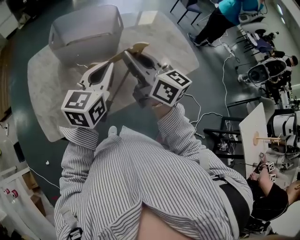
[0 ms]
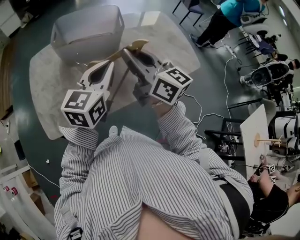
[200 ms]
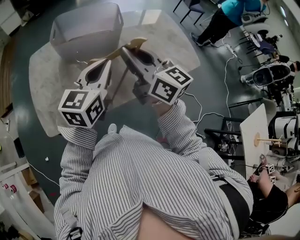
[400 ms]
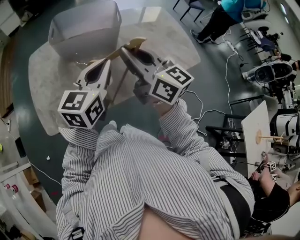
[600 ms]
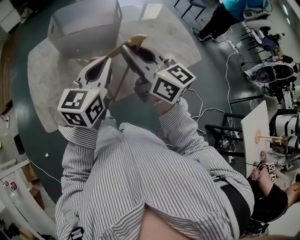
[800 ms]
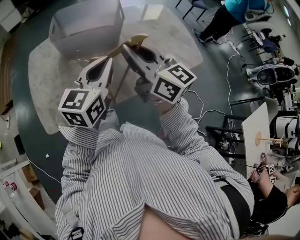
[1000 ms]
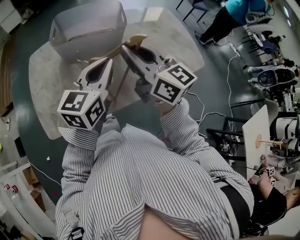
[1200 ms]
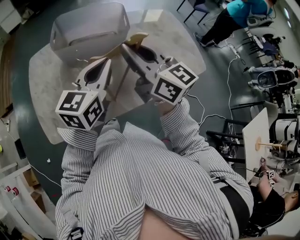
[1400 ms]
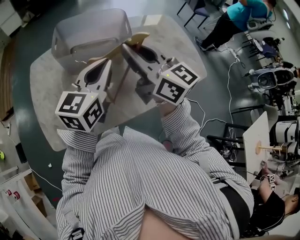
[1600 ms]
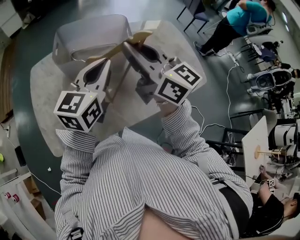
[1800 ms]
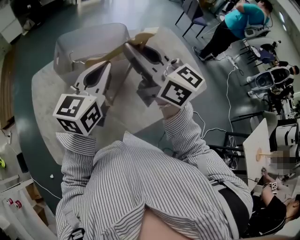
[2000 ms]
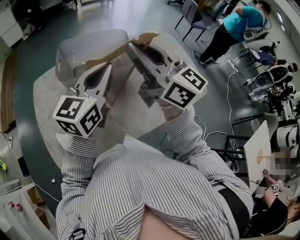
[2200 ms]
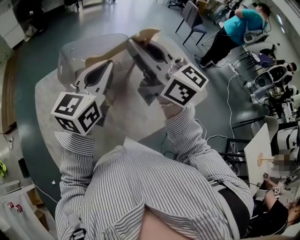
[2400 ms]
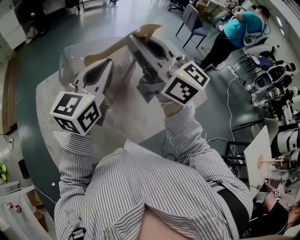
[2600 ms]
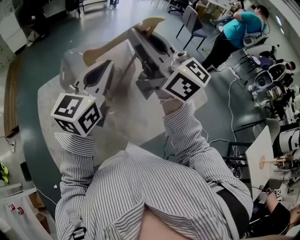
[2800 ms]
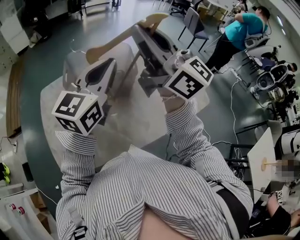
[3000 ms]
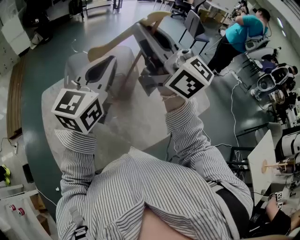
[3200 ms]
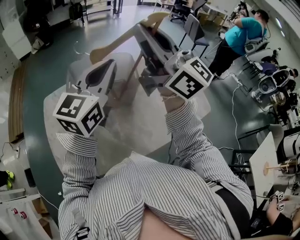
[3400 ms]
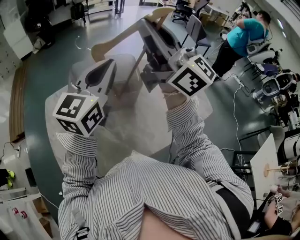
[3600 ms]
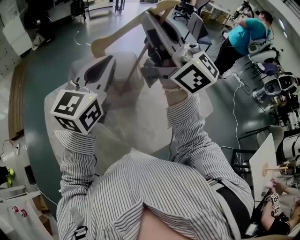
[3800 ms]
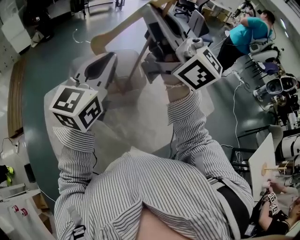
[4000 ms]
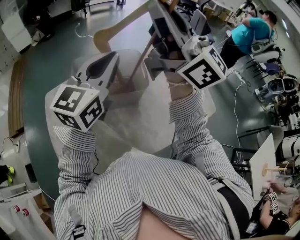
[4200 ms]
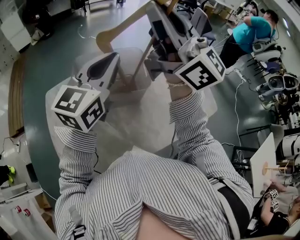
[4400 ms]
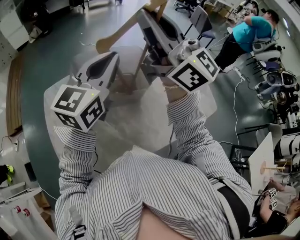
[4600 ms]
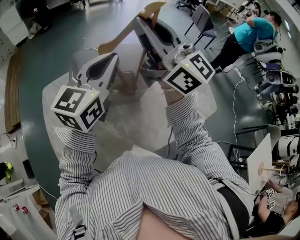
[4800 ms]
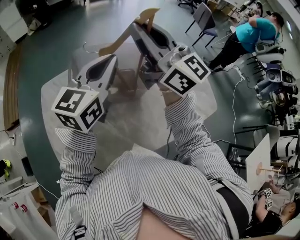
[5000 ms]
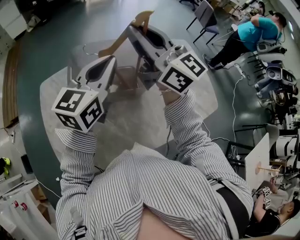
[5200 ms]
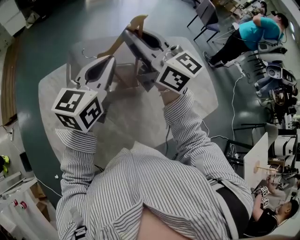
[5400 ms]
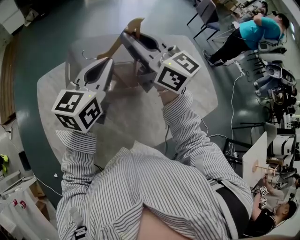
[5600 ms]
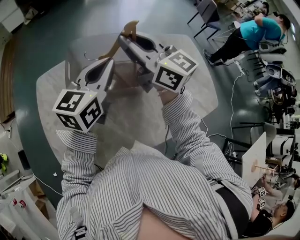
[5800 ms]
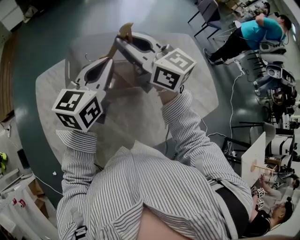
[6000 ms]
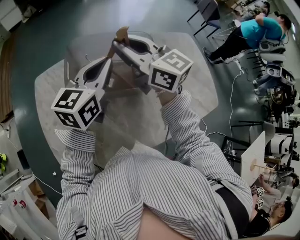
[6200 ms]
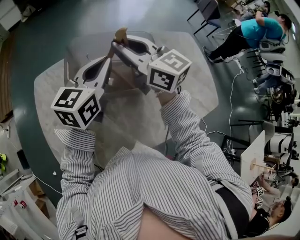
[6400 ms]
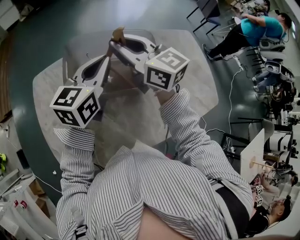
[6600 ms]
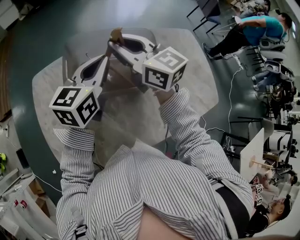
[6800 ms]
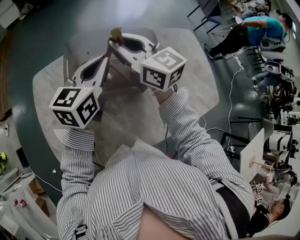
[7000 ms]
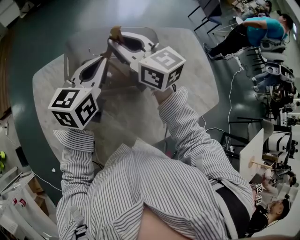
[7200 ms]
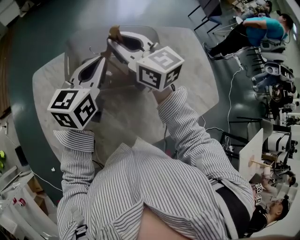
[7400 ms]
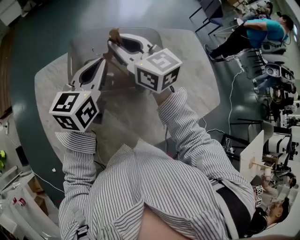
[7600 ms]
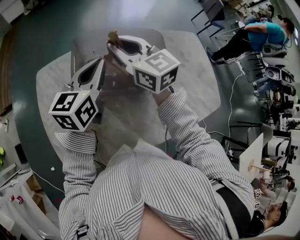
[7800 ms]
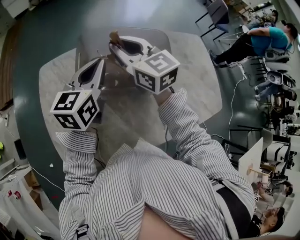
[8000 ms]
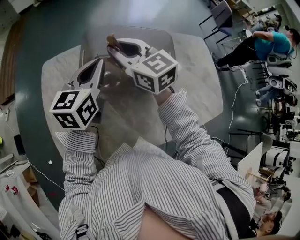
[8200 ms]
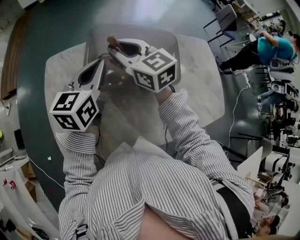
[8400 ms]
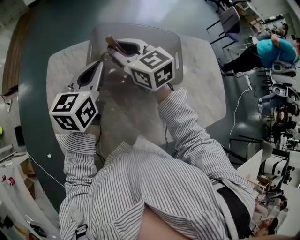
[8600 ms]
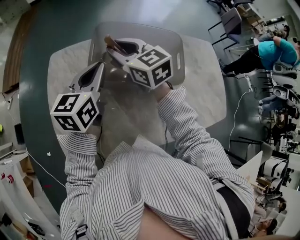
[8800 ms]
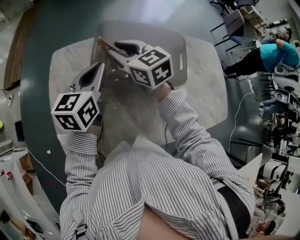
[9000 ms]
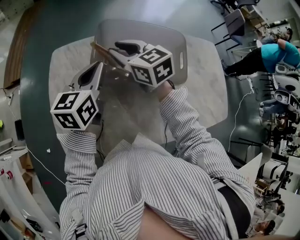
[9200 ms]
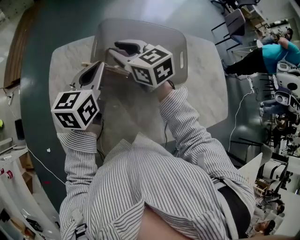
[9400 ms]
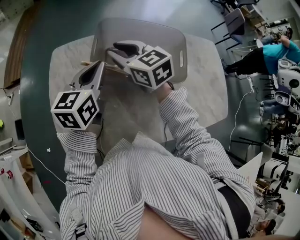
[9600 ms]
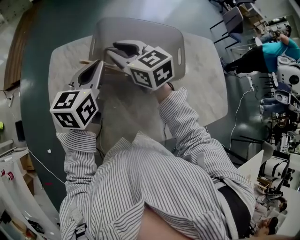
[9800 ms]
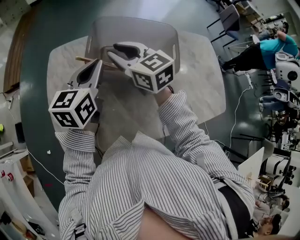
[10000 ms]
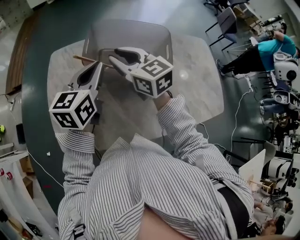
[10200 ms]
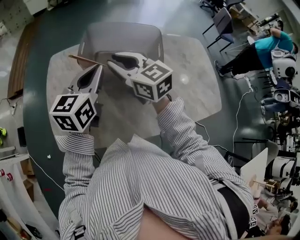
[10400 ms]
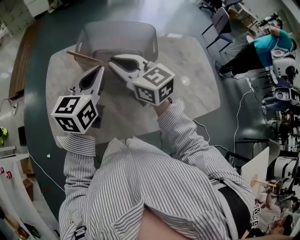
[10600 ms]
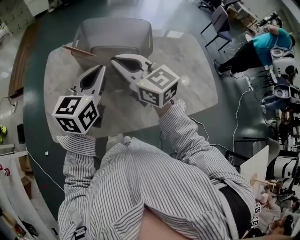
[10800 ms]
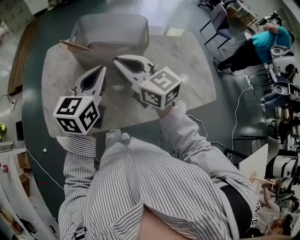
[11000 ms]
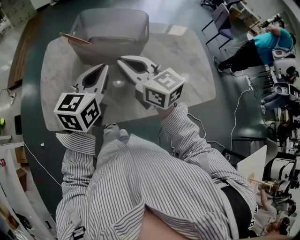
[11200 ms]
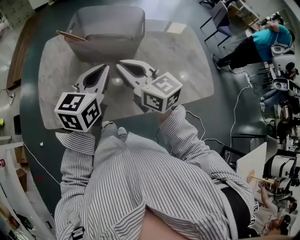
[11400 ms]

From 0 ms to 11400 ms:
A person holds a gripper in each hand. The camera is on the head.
From 0 ms to 1400 ms: The grippers stay close to where they were, moving slightly.
From 1400 ms to 2800 ms: Both grippers travel together upward and forward, about 15 cm.
From 2800 ms to 4200 ms: The left gripper goes about 10 cm forward. Meanwhile the right gripper goes approximately 10 cm upward and forward.
From 4200 ms to 5600 ms: The right gripper is displaced downward and forward by about 25 cm, and swivels some 30 degrees; the left gripper shifts some 15 cm downward and forward.
From 5600 ms to 7200 ms: The left gripper moves approximately 5 cm, while the right gripper moves downward, about 10 cm.
From 7200 ms to 8600 ms: The two grippers go roughly 10 cm to the left.
From 8600 ms to 10000 ms: The right gripper shifts some 5 cm backward.
From 10000 ms to 11400 ms: Both grippers move backward and to the right, approximately 25 cm. The right gripper closes up.

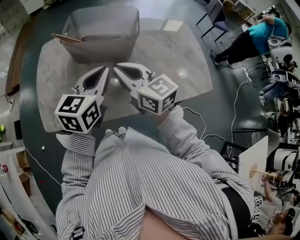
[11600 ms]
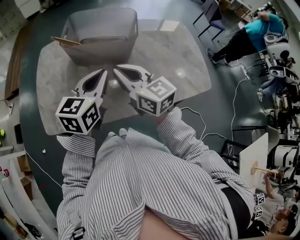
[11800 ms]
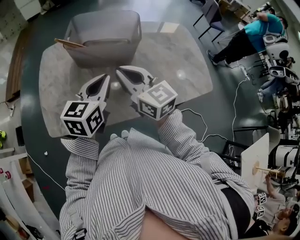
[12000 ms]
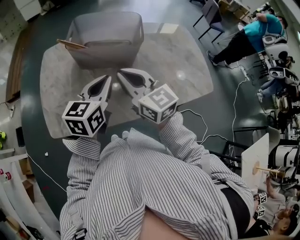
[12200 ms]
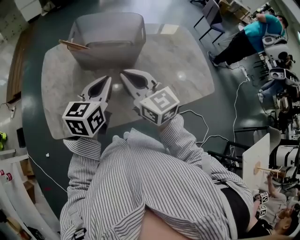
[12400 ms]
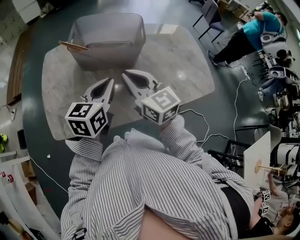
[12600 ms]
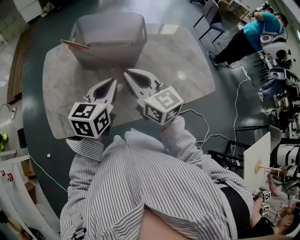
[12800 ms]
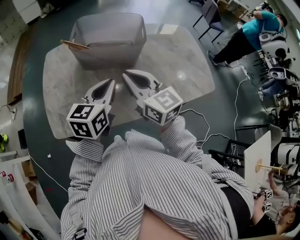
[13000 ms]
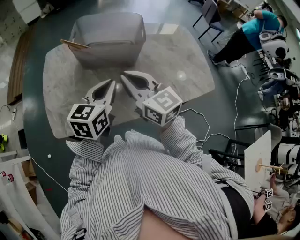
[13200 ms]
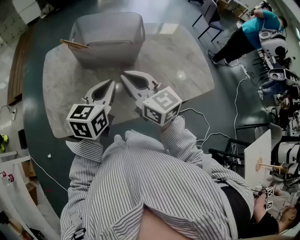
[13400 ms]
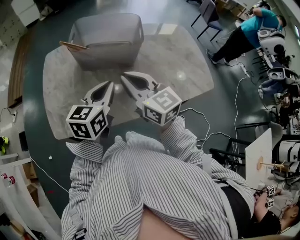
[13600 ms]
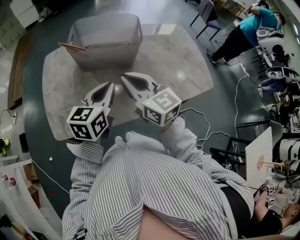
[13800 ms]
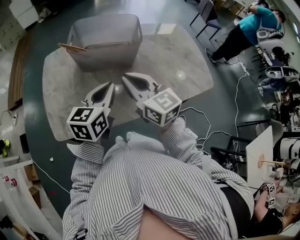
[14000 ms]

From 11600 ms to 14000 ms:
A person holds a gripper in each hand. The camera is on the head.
From 11600 ms to 14000 ms: There are only small adjustments of the grippers.

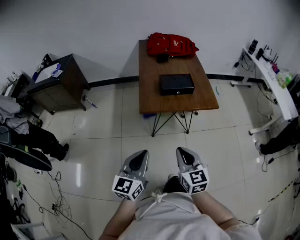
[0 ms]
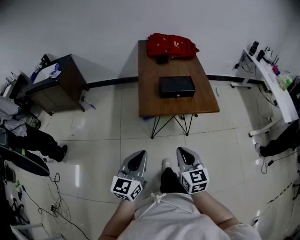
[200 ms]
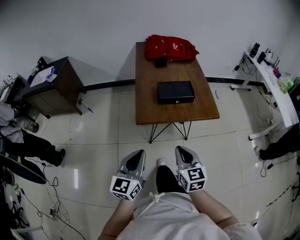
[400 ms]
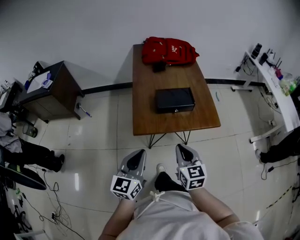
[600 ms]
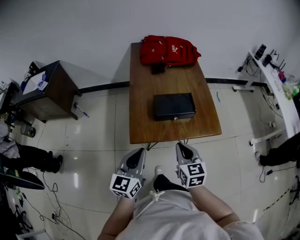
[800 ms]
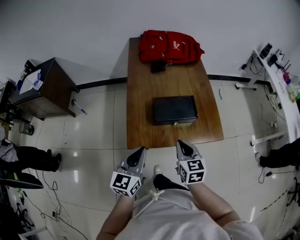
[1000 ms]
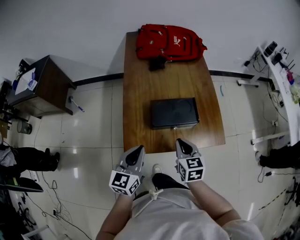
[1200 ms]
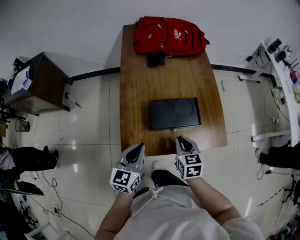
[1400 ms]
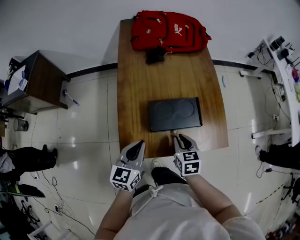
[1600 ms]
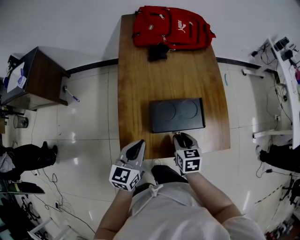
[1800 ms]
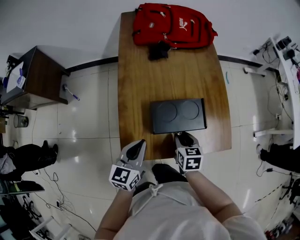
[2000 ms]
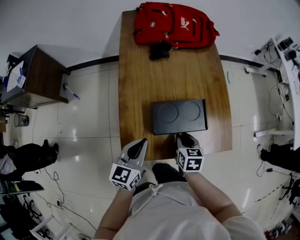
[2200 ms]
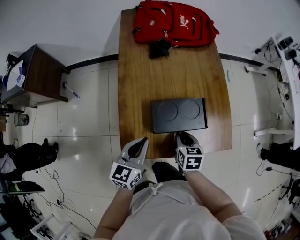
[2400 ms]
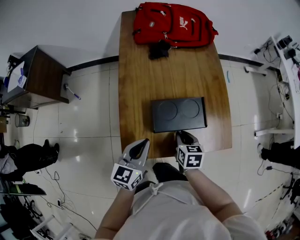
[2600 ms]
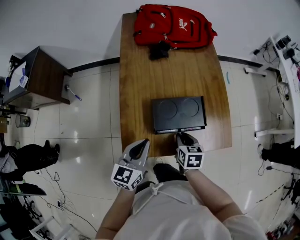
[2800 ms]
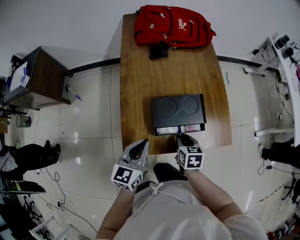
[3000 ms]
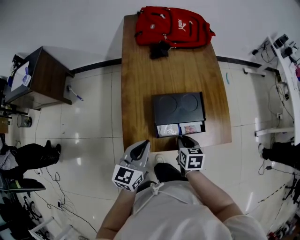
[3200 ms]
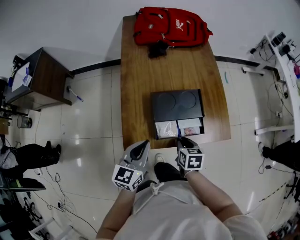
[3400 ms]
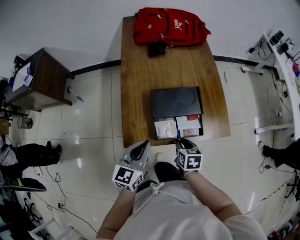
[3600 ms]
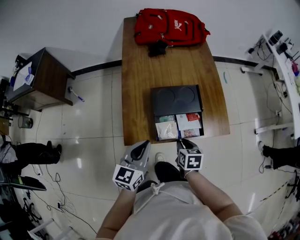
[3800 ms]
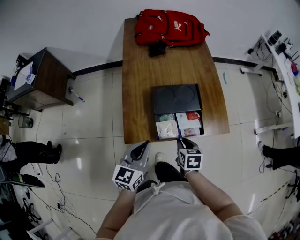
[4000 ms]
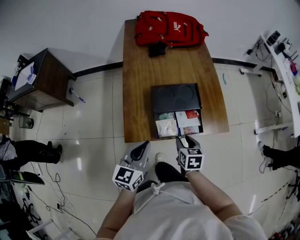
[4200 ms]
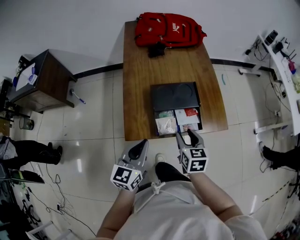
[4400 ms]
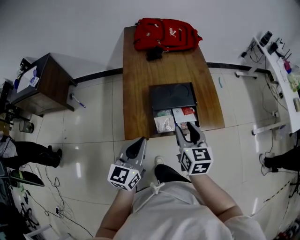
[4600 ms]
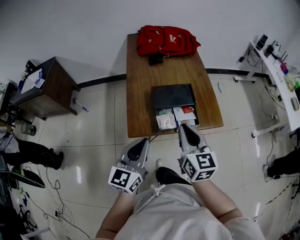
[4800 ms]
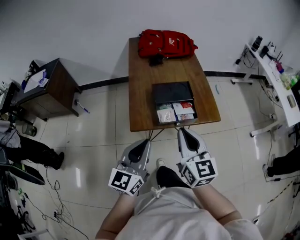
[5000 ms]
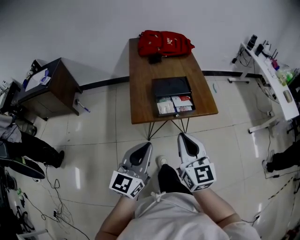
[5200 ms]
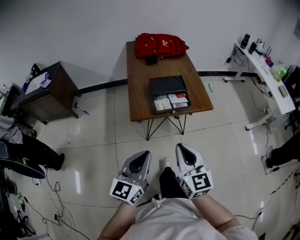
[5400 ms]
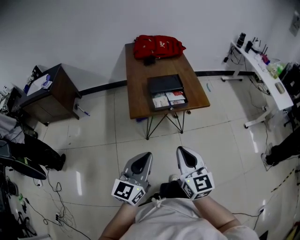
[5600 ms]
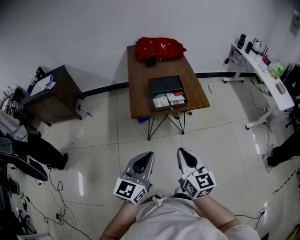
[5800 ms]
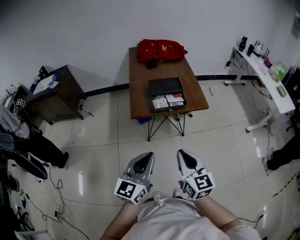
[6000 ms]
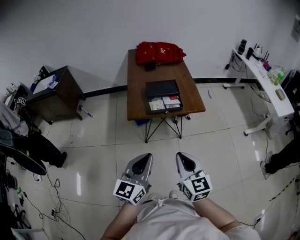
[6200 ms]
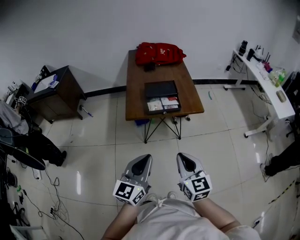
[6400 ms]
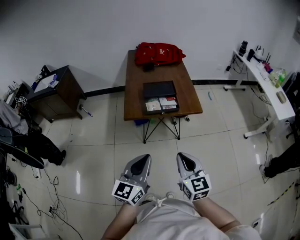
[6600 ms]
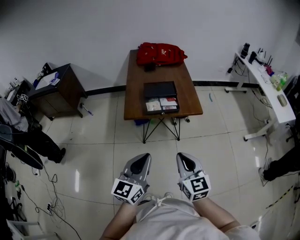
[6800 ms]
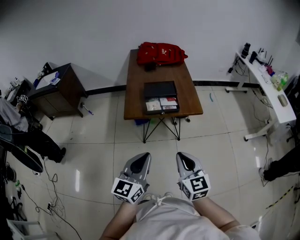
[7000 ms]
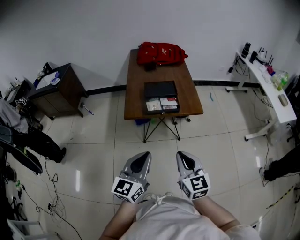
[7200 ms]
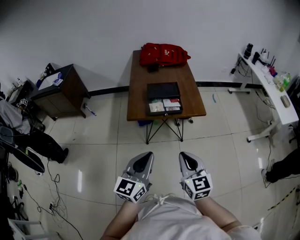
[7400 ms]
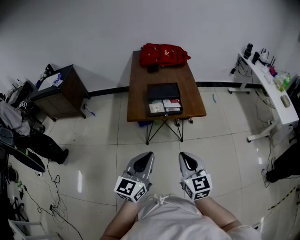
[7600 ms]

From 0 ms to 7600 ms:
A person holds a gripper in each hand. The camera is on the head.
From 0 ms to 1600 ms: The pair of grippers is taken forward, some 40 cm. The right gripper heads downward, covering roughly 20 cm, and swivels about 30 degrees.
From 1600 ms to 3000 ms: There are only small adjustments of the grippers.
From 3000 ms to 4600 ms: The right gripper moves upward and backward, roughly 20 cm, turns by some 30 degrees, and opens. Meanwhile the left gripper heads backward and upward, covering approximately 15 cm.
From 4600 ms to 6000 ms: The grippers both shift backward by approximately 35 cm. The right gripper closes up.
From 6000 ms to 7600 ms: The two grippers go approximately 5 cm to the right.

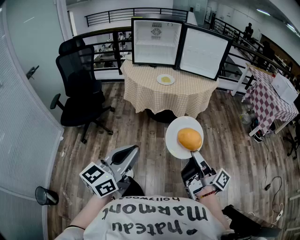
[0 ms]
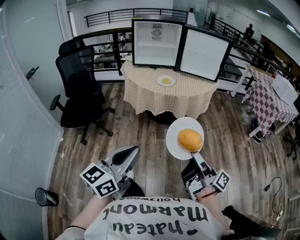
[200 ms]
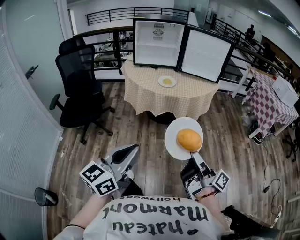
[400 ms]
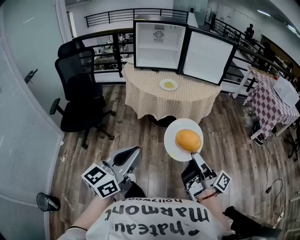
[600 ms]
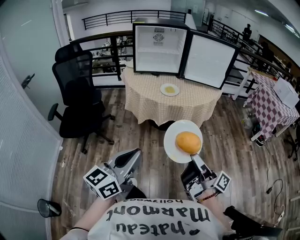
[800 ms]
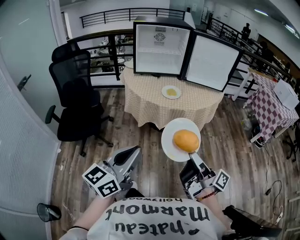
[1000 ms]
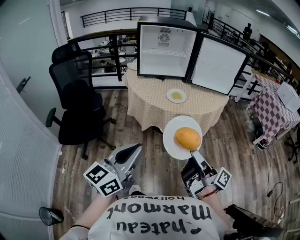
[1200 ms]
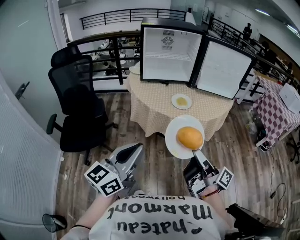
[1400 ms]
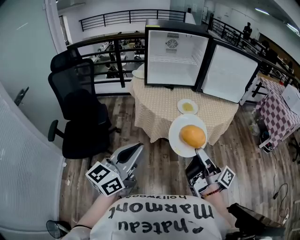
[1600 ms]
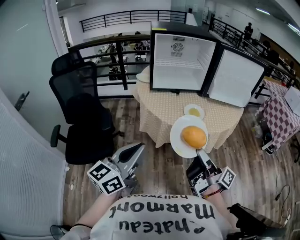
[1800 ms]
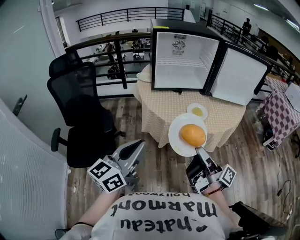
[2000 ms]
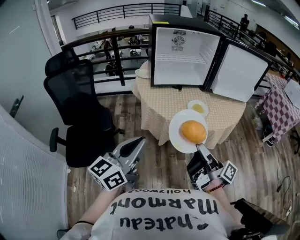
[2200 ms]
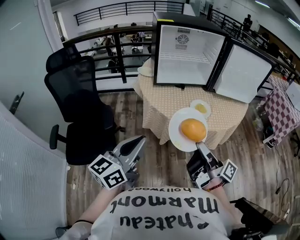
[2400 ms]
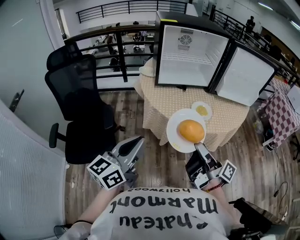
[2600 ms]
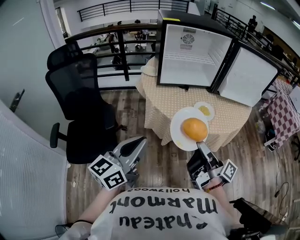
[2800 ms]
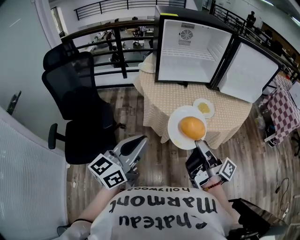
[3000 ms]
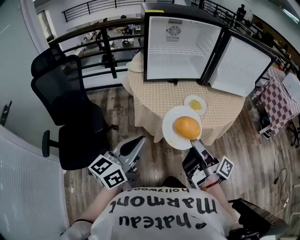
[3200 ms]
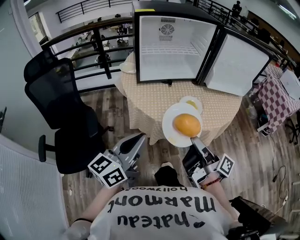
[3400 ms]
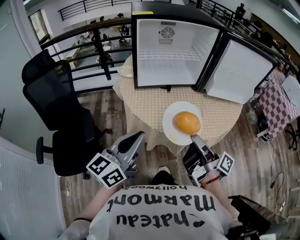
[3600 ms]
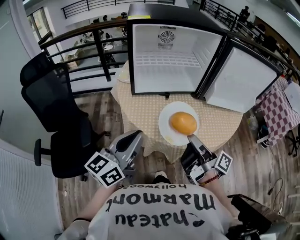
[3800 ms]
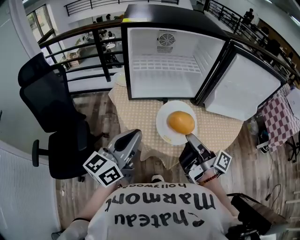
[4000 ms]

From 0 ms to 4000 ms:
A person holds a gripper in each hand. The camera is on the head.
From 0 ms to 1400 ms: Both grippers move forward and to the left, roughly 25 cm.
From 1400 ms to 2600 ms: The right gripper is displaced to the left and forward by roughly 20 cm; the left gripper travels forward and to the left by about 20 cm.
From 2600 ms to 4000 ms: The two grippers go some 20 cm forward.
